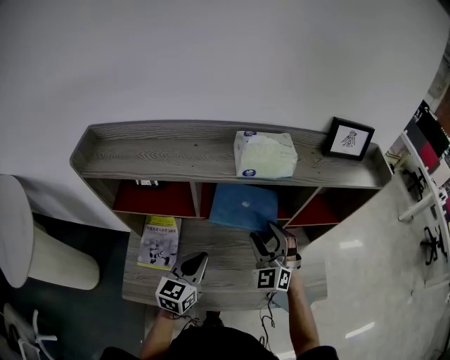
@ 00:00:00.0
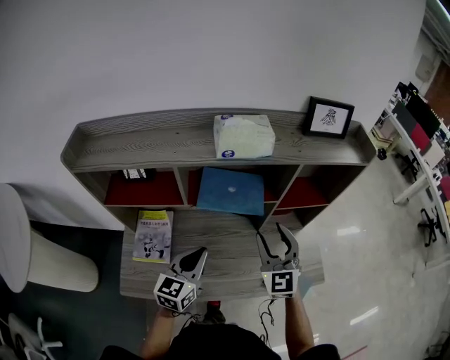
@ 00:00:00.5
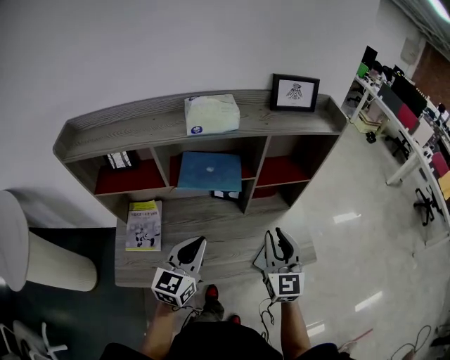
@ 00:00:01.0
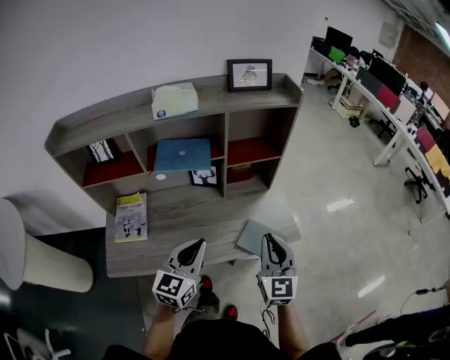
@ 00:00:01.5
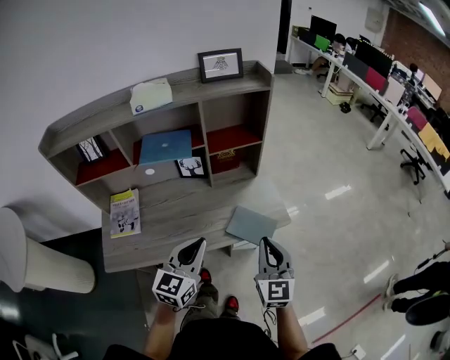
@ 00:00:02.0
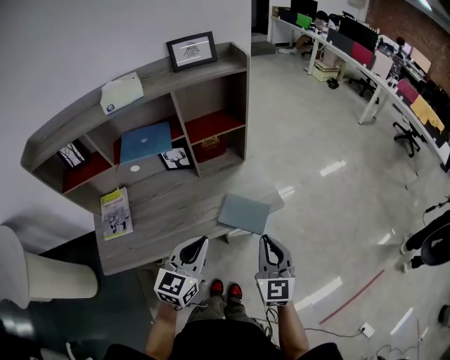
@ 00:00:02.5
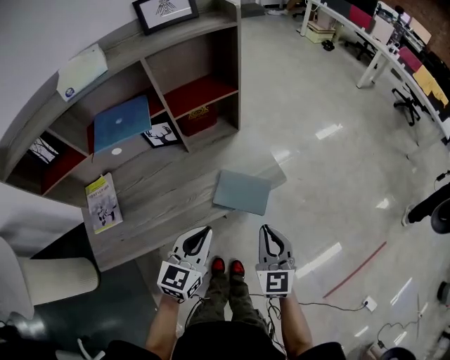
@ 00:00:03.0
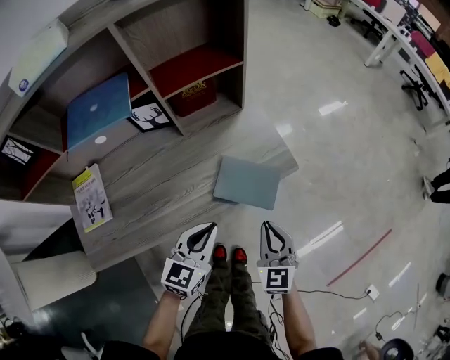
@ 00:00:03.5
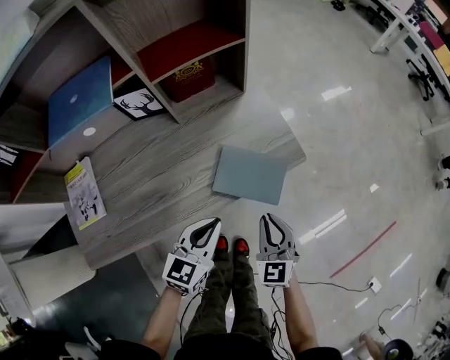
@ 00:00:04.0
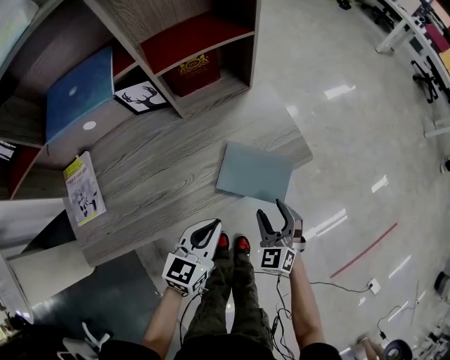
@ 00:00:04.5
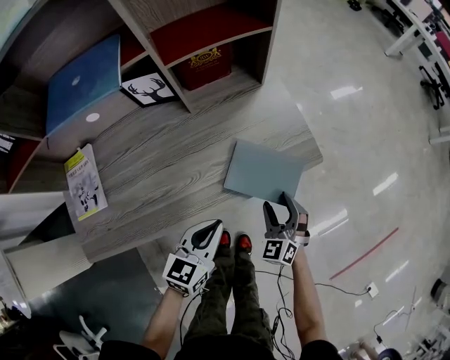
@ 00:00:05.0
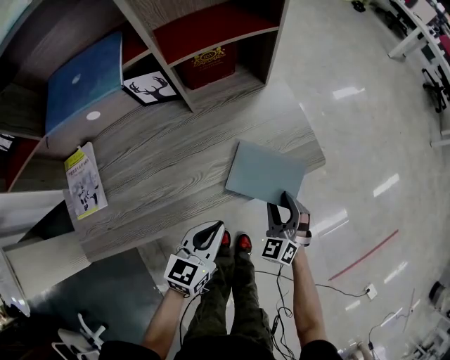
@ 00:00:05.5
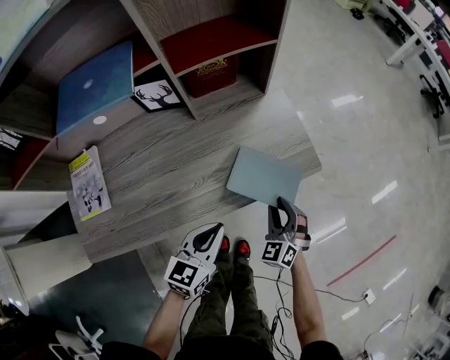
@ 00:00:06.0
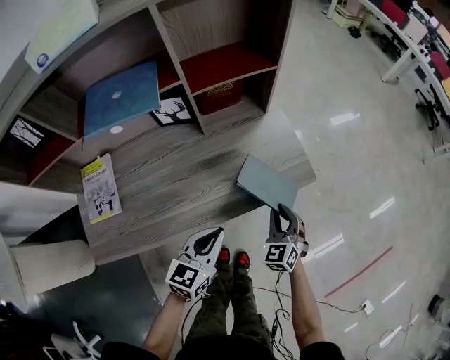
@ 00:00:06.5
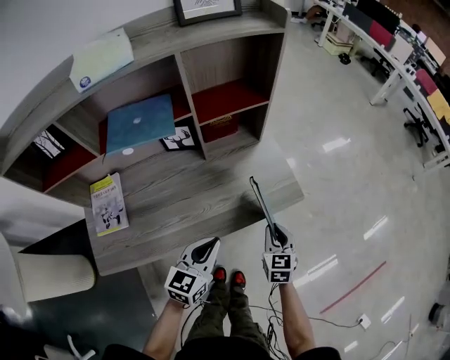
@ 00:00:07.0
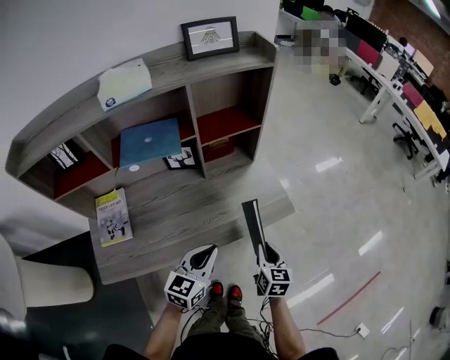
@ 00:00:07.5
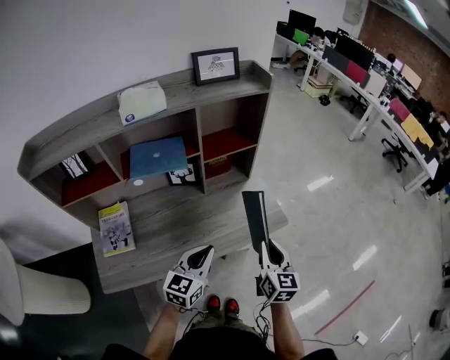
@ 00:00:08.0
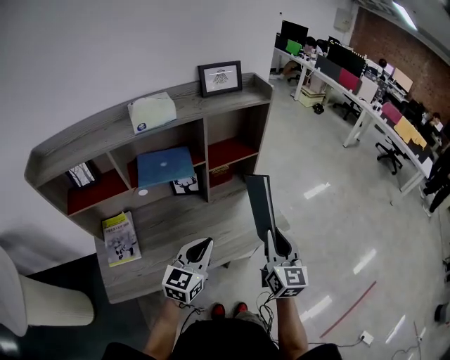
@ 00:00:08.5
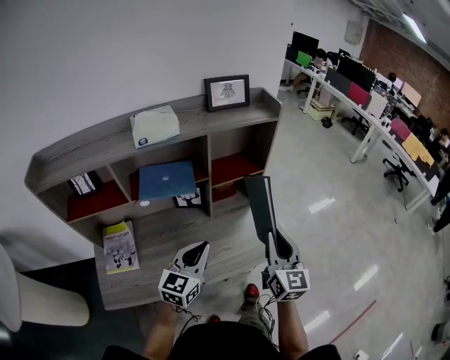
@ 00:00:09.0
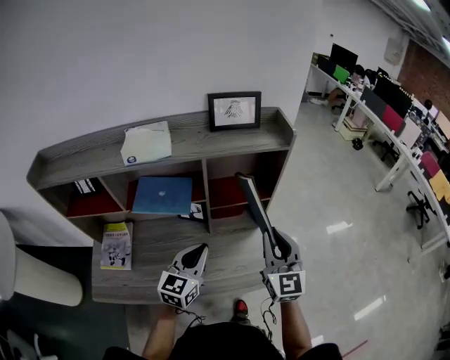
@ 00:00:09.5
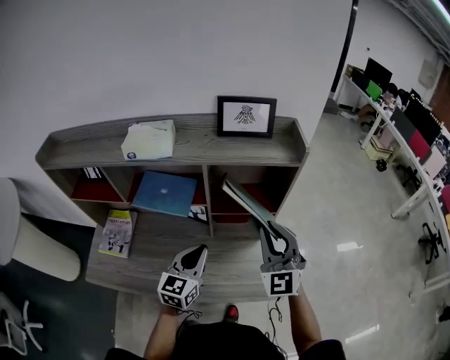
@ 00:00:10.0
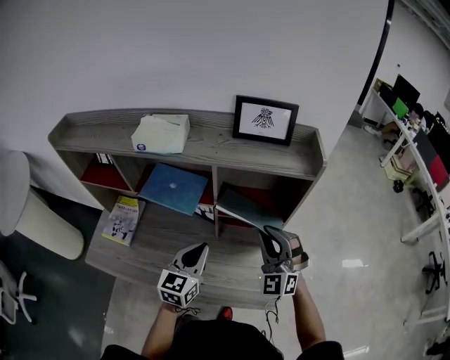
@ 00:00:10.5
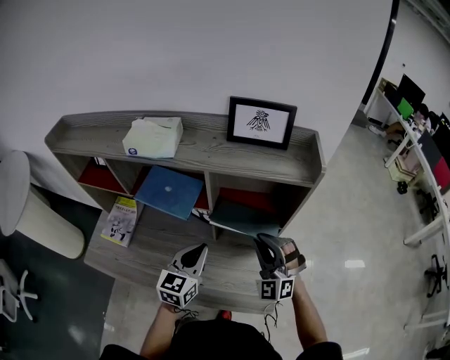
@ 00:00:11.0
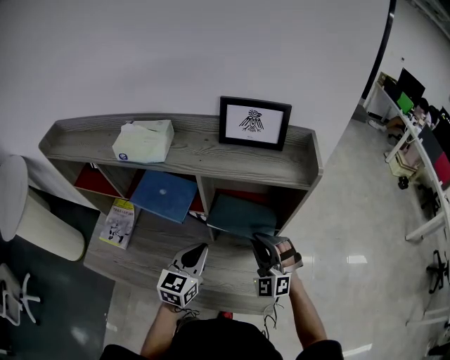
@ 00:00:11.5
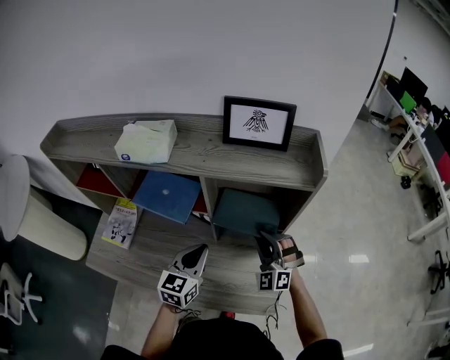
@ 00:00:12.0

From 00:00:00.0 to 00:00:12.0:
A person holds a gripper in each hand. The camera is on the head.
From 00:00:00.0 to 00:00:02.0: The left gripper goes approximately 30 cm to the right and backward, while the right gripper travels backward and to the right by roughly 40 cm, rotates around the line of its fingers by approximately 40 degrees, clockwise from behind, and closes up.
From 00:00:02.0 to 00:00:04.0: The two grippers go some 25 cm downward. The right gripper turns by about 20 degrees. The left gripper changes its angle by some 20 degrees.
From 00:00:04.0 to 00:00:06.0: The right gripper travels downward and forward by roughly 10 cm, changes its angle by roughly 30 degrees, and opens.
From 00:00:06.0 to 00:00:08.0: The two grippers go about 25 cm upward. The right gripper rolls clockwise, seen from behind, by some 50 degrees.
From 00:00:08.0 to 00:00:10.0: The left gripper moves about 20 cm, and swivels approximately 30 degrees, while the right gripper ends up roughly 30 cm from where it was, and turns by roughly 60 degrees.
From 00:00:10.0 to 00:00:12.0: The left gripper ends up about 5 cm from where it was. The right gripper is displaced downward and forward by approximately 20 cm, and turns by roughly 30 degrees.

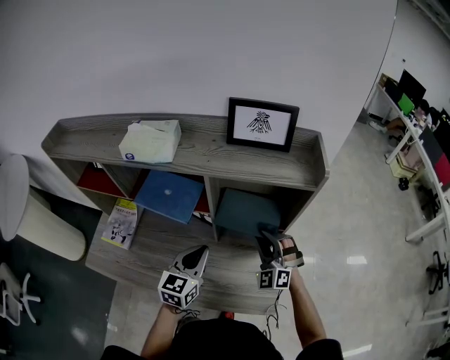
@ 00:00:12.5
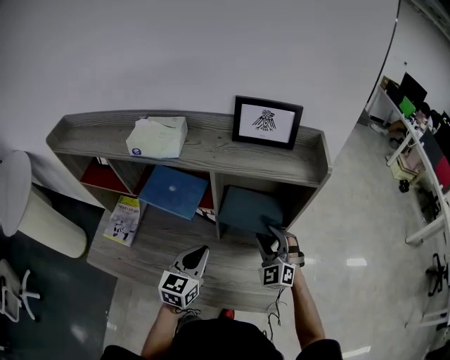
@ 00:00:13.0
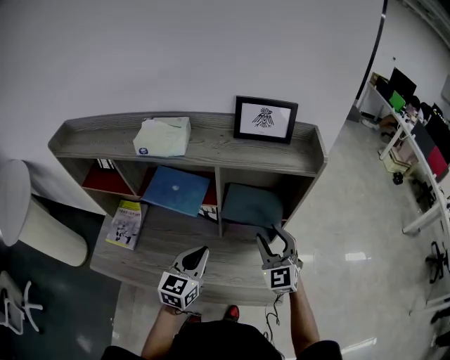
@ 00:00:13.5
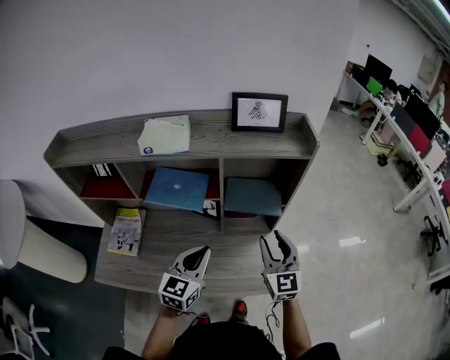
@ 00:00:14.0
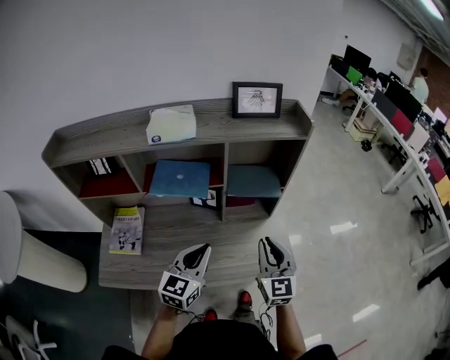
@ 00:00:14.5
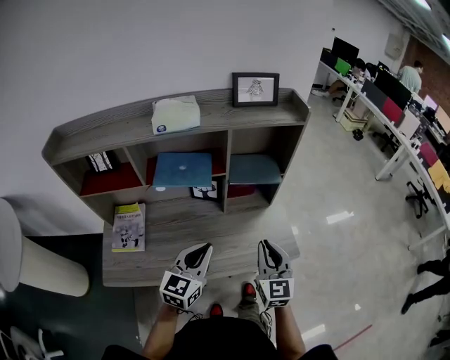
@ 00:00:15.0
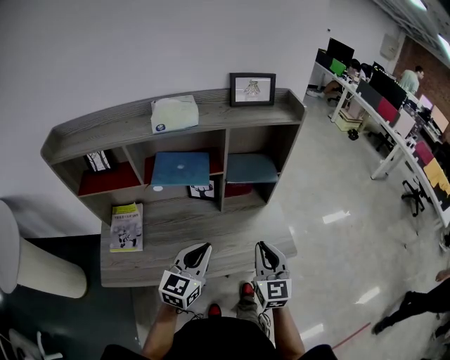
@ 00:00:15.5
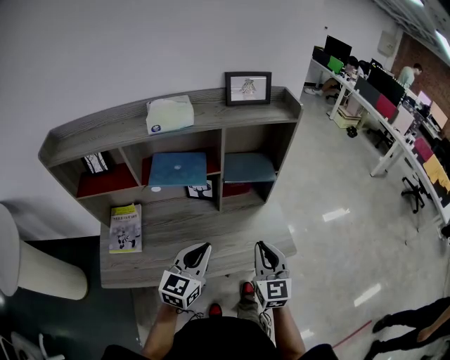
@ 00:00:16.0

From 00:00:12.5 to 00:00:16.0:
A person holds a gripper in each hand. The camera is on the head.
From 00:00:12.5 to 00:00:14.5: The right gripper moves backward and upward, some 20 cm, and rotates around the line of its fingers by some 50 degrees, clockwise from behind; the left gripper moves backward and to the left, roughly 15 cm.
From 00:00:14.5 to 00:00:16.0: The right gripper heads backward, covering about 5 cm.

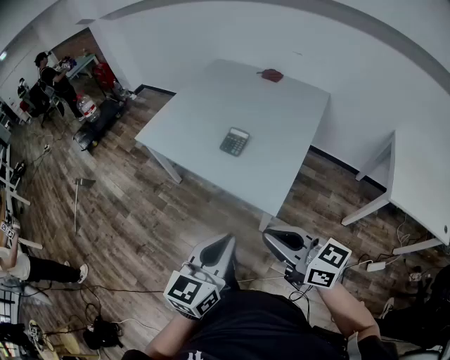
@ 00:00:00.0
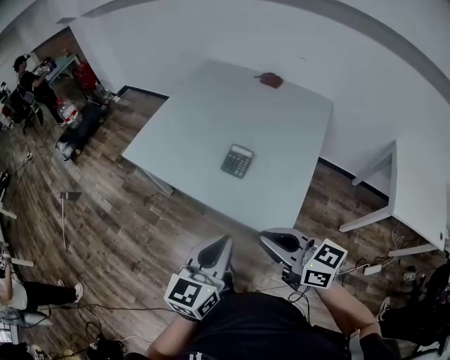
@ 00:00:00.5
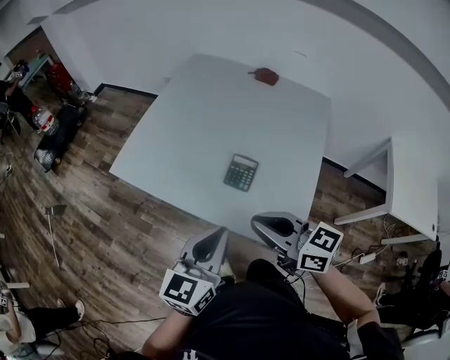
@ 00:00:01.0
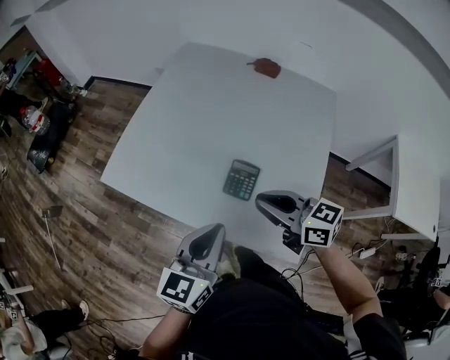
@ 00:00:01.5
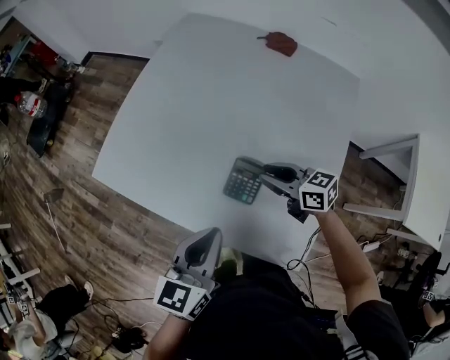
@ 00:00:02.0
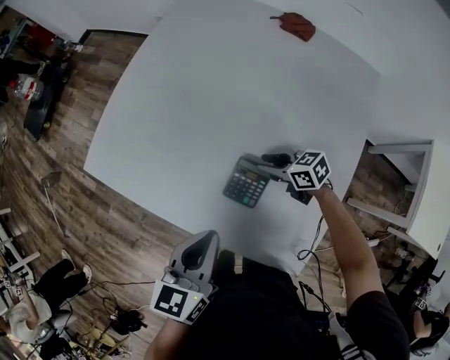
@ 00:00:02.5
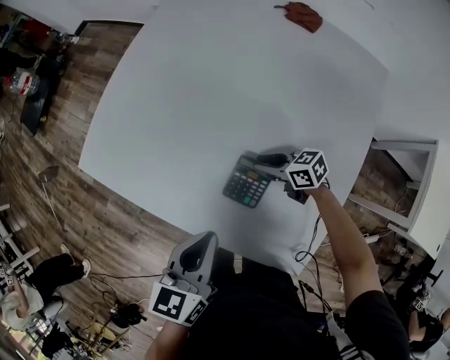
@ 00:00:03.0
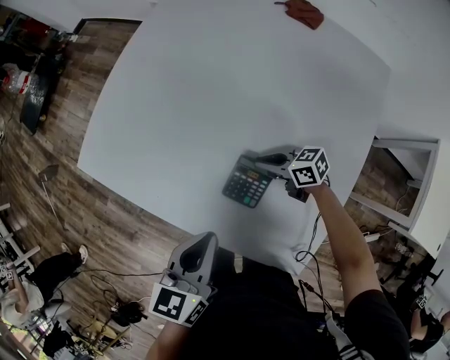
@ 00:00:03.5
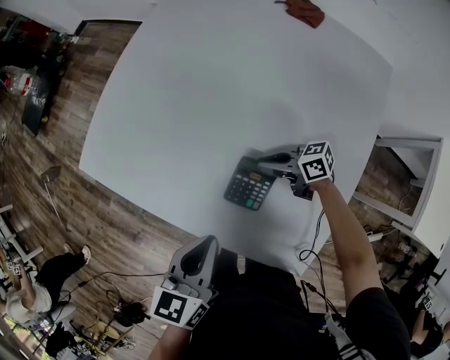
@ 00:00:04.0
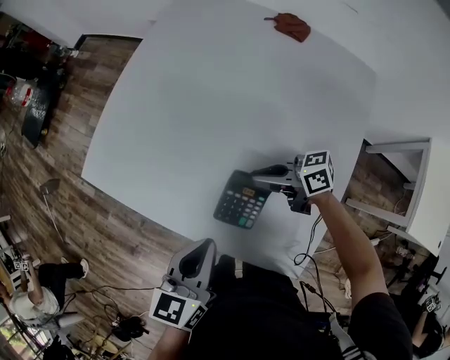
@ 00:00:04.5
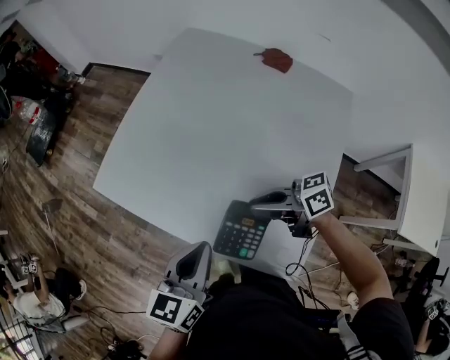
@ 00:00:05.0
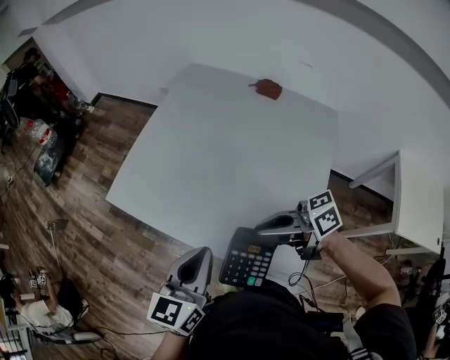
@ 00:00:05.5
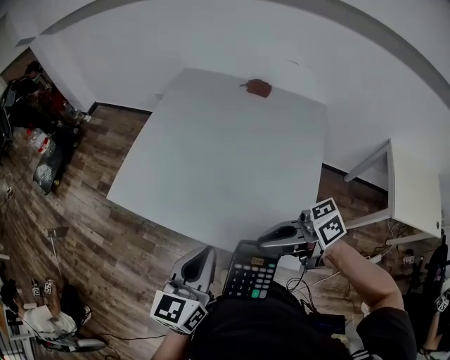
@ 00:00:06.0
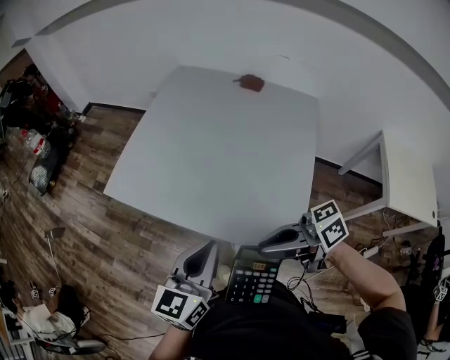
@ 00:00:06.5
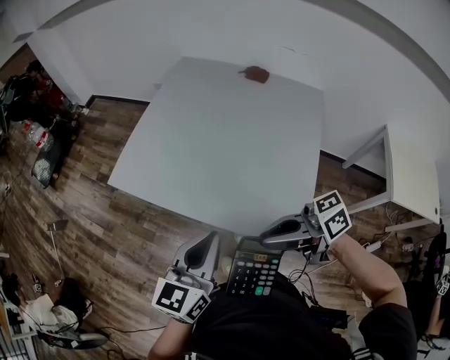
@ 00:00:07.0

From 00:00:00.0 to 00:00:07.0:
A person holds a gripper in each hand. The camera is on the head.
From 00:00:00.0 to 00:00:02.0: The pair of grippers is taken forward, roughly 40 cm. The right gripper shifts some 20 cm downward, and turns by approximately 20 degrees.
From 00:00:02.0 to 00:00:03.5: The right gripper is displaced downward by roughly 15 cm, and changes its angle by about 20 degrees. Meanwhile the left gripper travels downward by approximately 5 cm.
From 00:00:03.5 to 00:00:05.0: The right gripper is displaced upward by approximately 20 cm, and rotates roughly 20 degrees. The left gripper shifts roughly 10 cm upward.
From 00:00:05.0 to 00:00:07.0: The right gripper is displaced backward, upward and to the left by some 25 cm, while the left gripper heads backward, upward and to the left, covering some 15 cm.

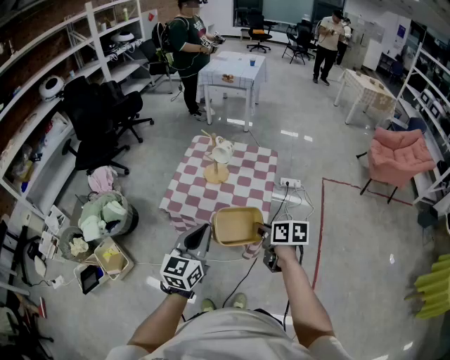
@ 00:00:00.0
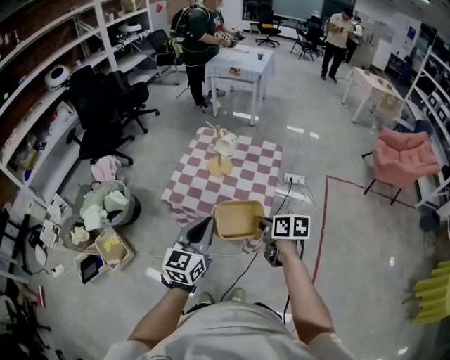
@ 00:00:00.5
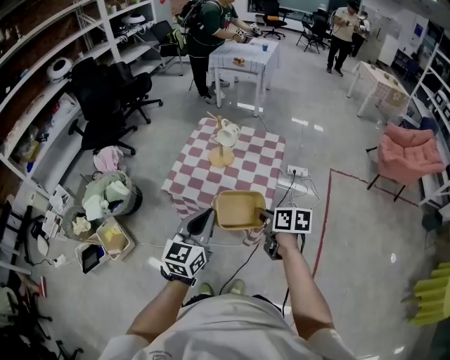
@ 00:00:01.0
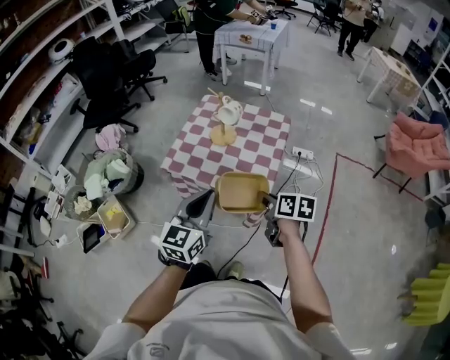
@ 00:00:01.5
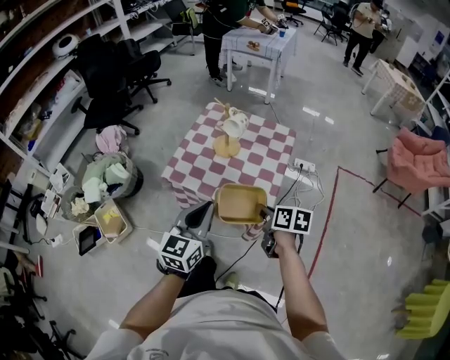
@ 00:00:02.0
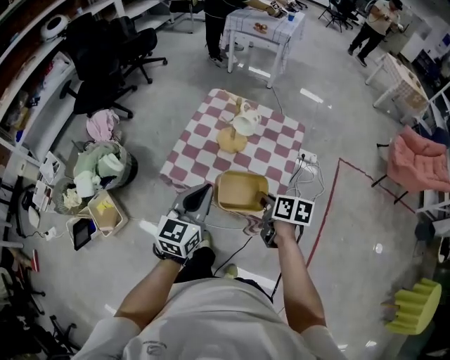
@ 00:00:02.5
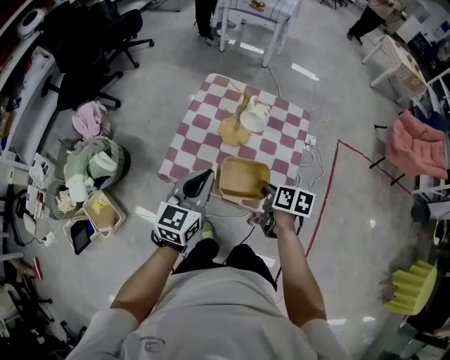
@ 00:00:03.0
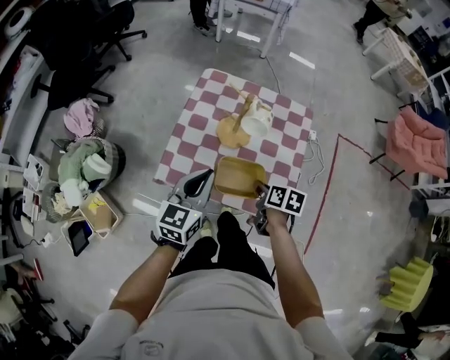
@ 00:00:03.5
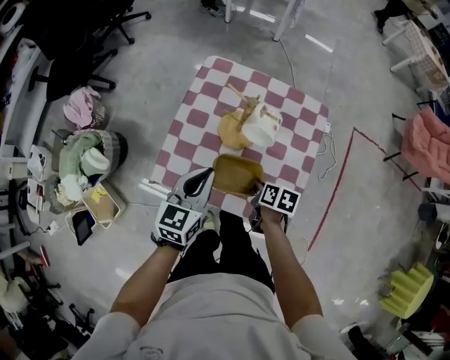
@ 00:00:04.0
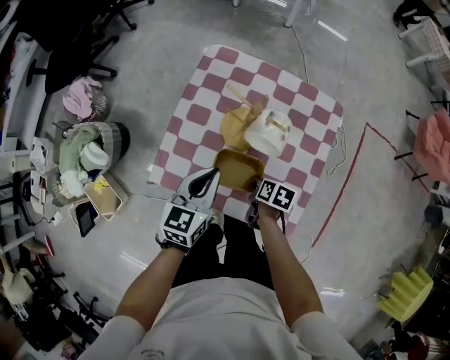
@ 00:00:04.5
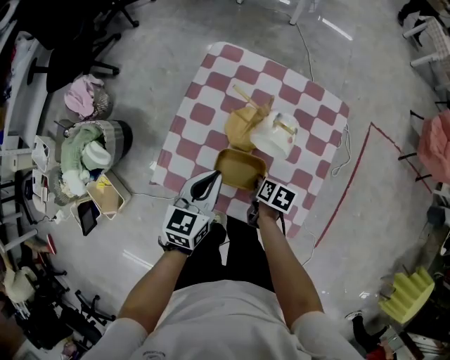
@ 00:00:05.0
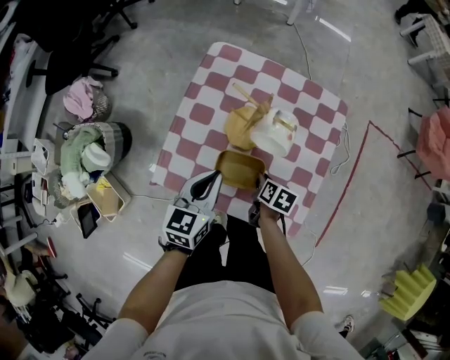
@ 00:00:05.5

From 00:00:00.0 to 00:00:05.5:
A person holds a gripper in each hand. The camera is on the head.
From 00:00:00.0 to 00:00:02.0: The right gripper heads forward, covering roughly 5 cm; the left gripper changes place by roughly 5 cm.
From 00:00:02.0 to 00:00:03.5: The right gripper shifts about 25 cm forward, downward and to the left, while the left gripper heads forward, covering some 25 cm.
From 00:00:03.5 to 00:00:05.5: Both grippers move downward and forward, some 15 cm.
